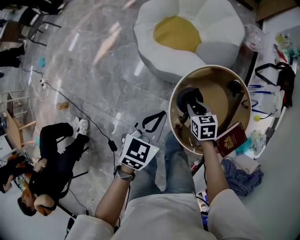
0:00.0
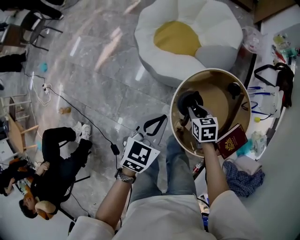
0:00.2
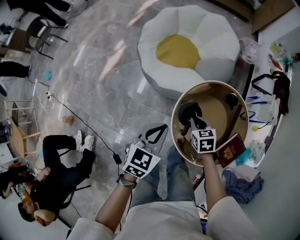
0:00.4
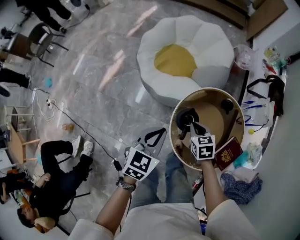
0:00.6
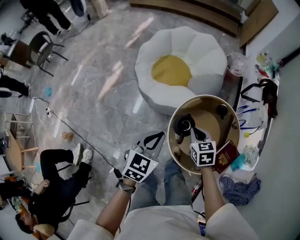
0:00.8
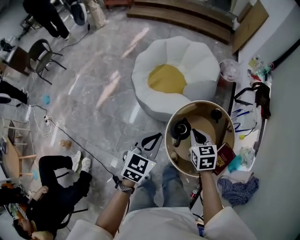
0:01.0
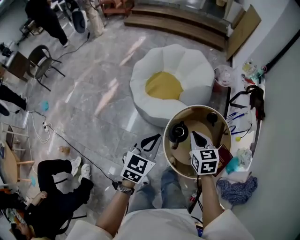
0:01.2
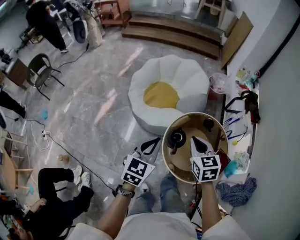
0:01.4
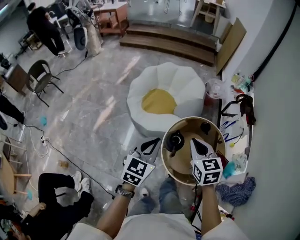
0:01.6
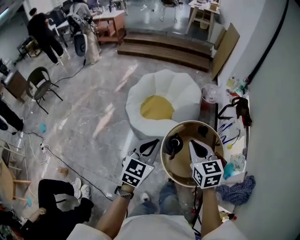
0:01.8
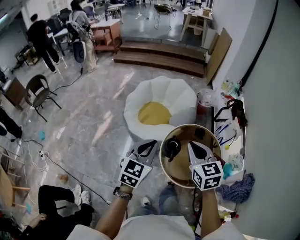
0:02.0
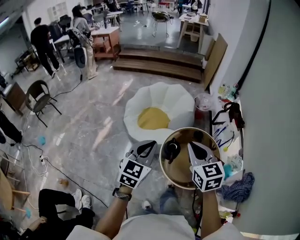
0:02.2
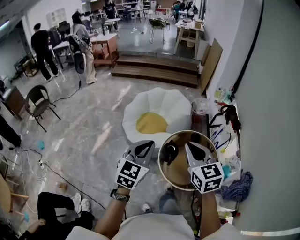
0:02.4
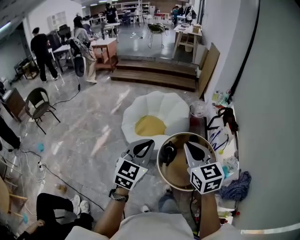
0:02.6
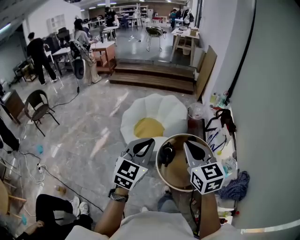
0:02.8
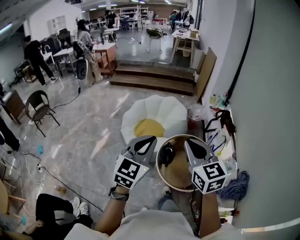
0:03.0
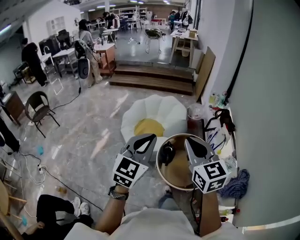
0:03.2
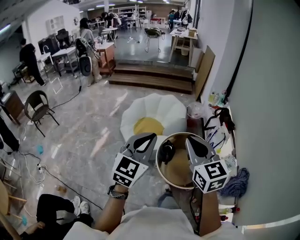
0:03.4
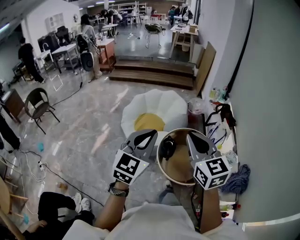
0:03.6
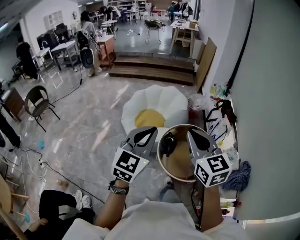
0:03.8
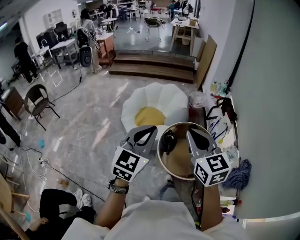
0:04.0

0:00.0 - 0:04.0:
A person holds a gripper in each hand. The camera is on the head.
0:00.0 - 0:01.4: The right gripper moves upward, some 30 cm, rotates some 30 degrees, and closes. The left gripper is displaced upward by approximately 20 cm.
0:01.4 - 0:02.6: The grippers both shift upward and backward by some 25 cm. The right gripper changes its angle by approximately 20 degrees.
0:02.6 - 0:04.0: The right gripper ends up approximately 5 cm from where it was; the left gripper changes place by approximately 5 cm.

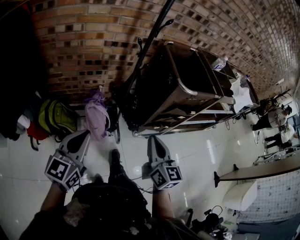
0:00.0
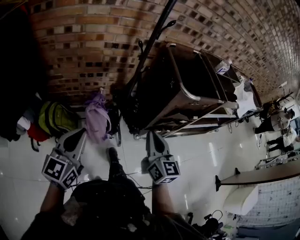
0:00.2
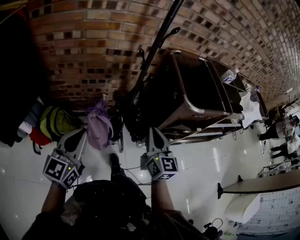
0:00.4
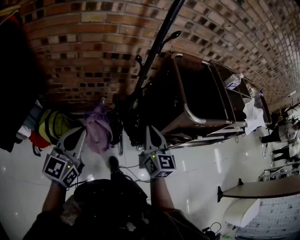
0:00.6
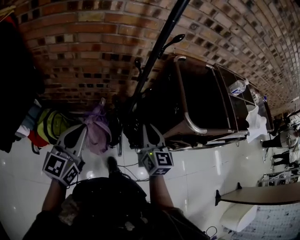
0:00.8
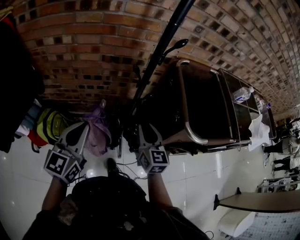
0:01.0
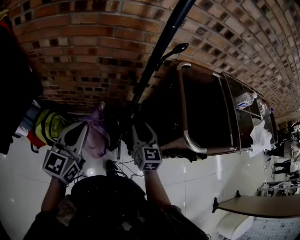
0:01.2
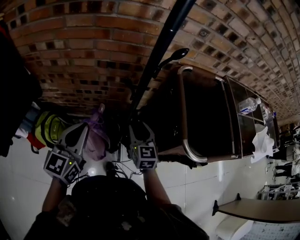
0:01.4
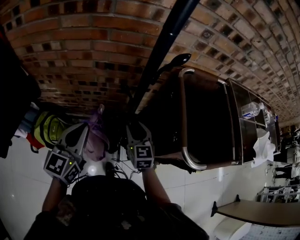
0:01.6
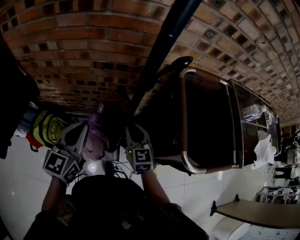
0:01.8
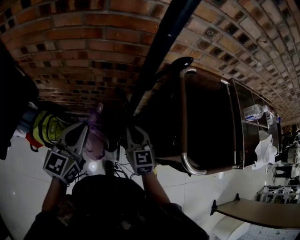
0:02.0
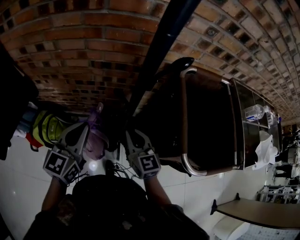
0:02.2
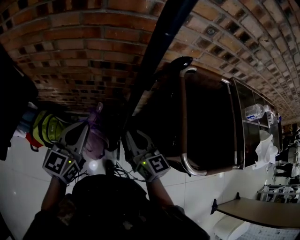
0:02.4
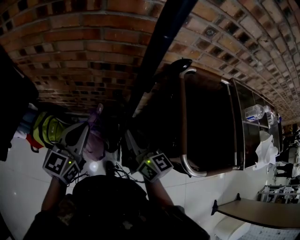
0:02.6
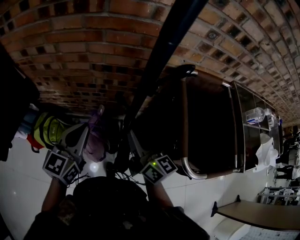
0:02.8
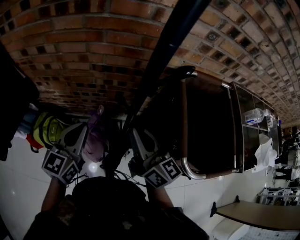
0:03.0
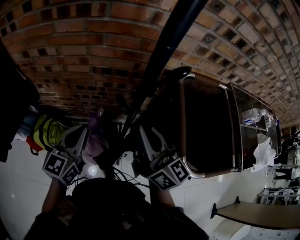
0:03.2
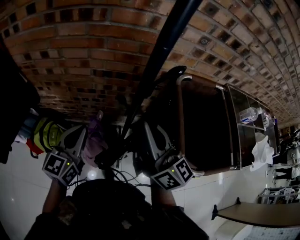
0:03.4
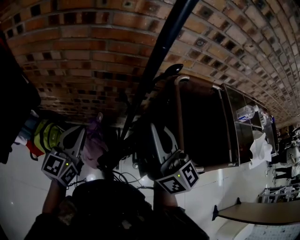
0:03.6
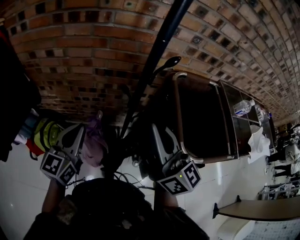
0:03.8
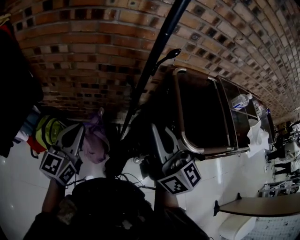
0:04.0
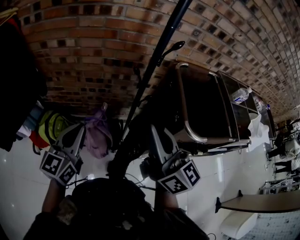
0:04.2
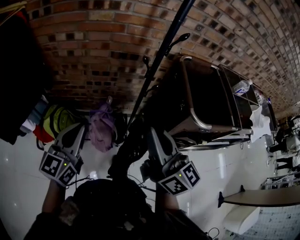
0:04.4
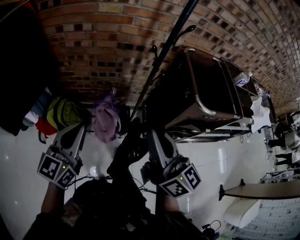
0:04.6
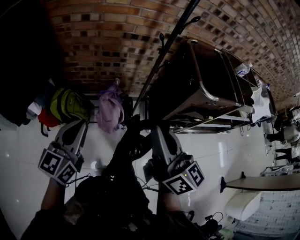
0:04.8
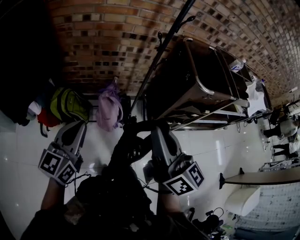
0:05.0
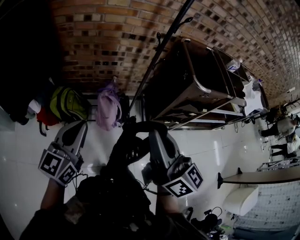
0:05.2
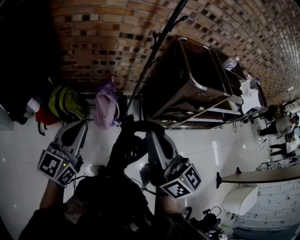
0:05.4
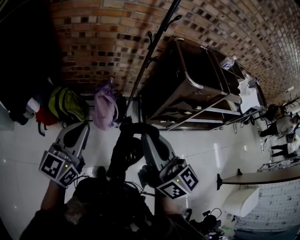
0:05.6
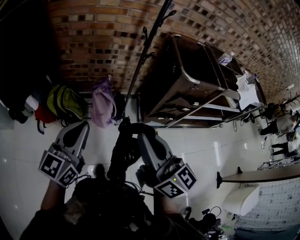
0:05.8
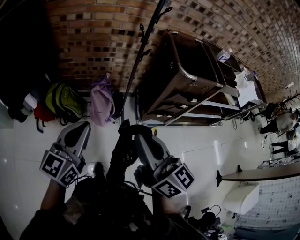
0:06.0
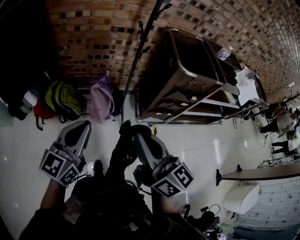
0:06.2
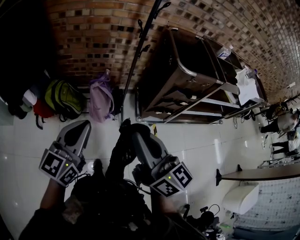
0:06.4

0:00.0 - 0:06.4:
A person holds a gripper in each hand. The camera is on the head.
0:00.0 - 0:01.6: The two grippers go roughly 40 cm forward. The right gripper changes its angle by roughly 30 degrees, and opens.
0:01.6 - 0:03.2: The right gripper heads upward, covering about 20 cm, swivels about 40 degrees, and closes.
0:03.2 - 0:04.8: The right gripper shifts roughly 35 cm backward; the left gripper goes about 35 cm backward and to the left.
0:04.8 - 0:06.4: The left gripper shifts approximately 20 cm backward and to the right. Meanwhile the right gripper heads backward, covering roughly 15 cm.

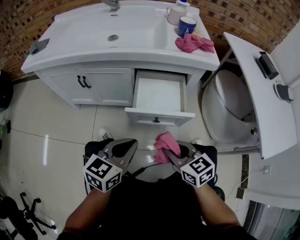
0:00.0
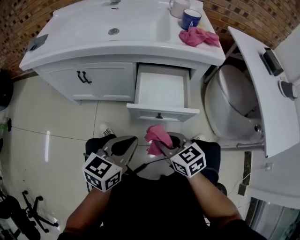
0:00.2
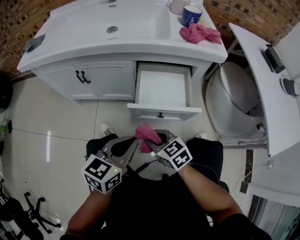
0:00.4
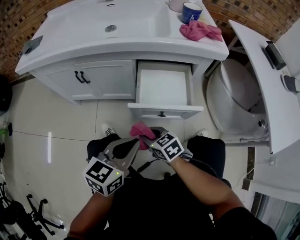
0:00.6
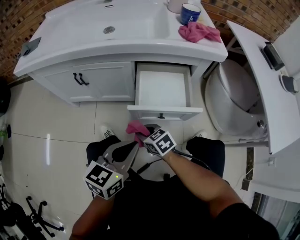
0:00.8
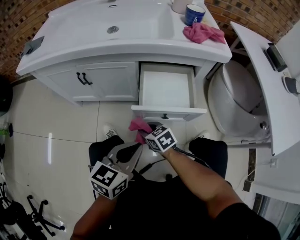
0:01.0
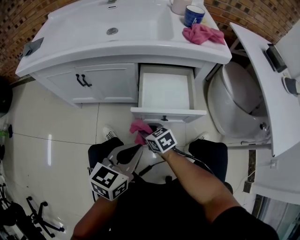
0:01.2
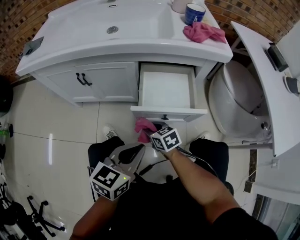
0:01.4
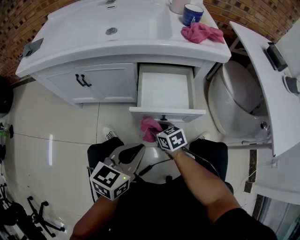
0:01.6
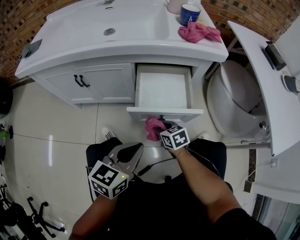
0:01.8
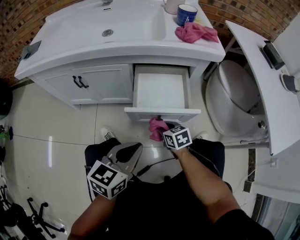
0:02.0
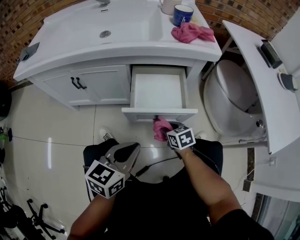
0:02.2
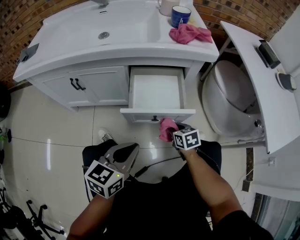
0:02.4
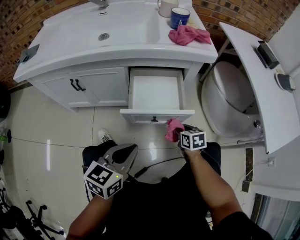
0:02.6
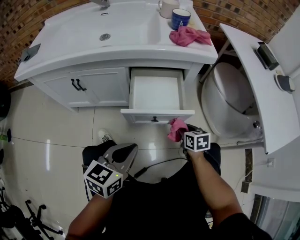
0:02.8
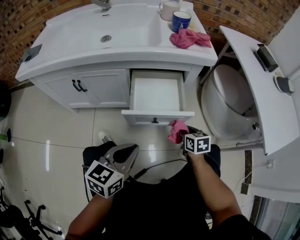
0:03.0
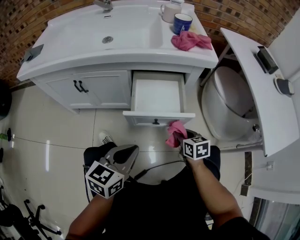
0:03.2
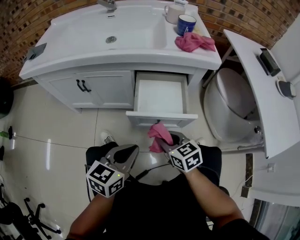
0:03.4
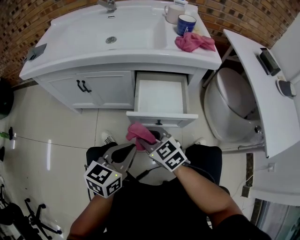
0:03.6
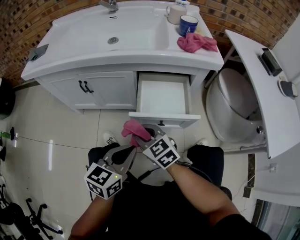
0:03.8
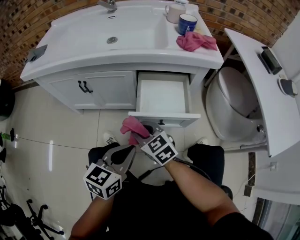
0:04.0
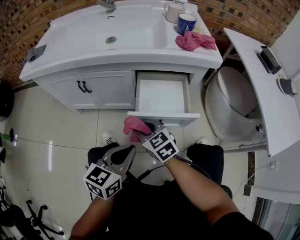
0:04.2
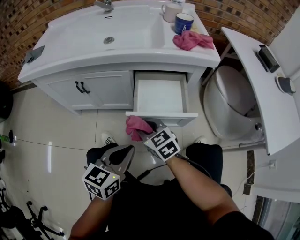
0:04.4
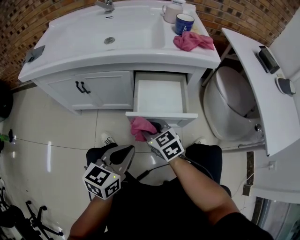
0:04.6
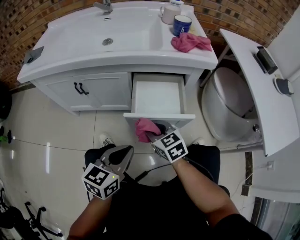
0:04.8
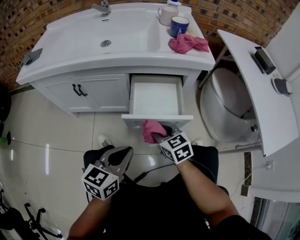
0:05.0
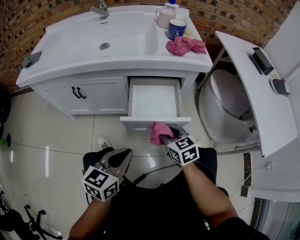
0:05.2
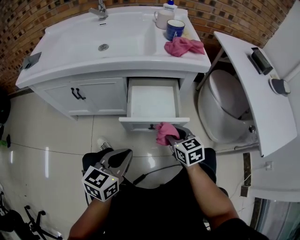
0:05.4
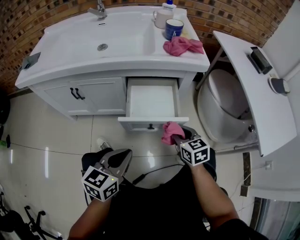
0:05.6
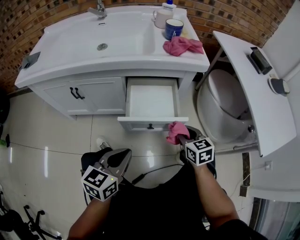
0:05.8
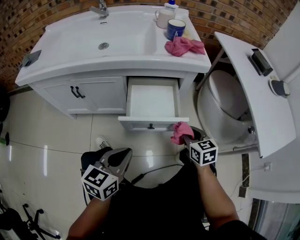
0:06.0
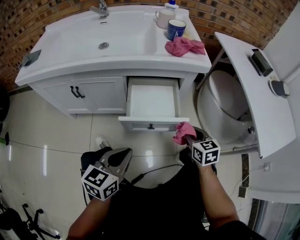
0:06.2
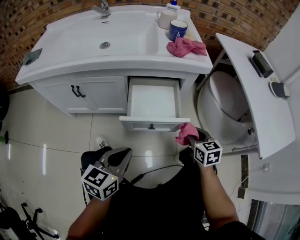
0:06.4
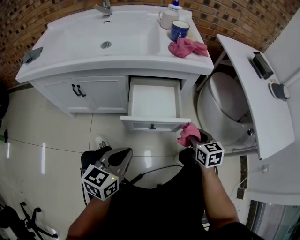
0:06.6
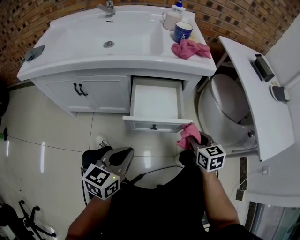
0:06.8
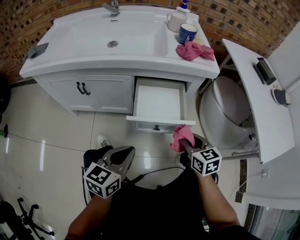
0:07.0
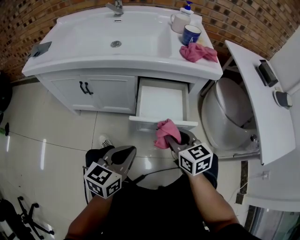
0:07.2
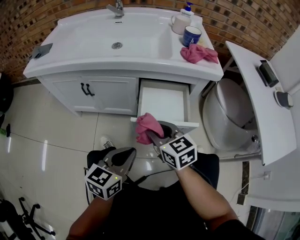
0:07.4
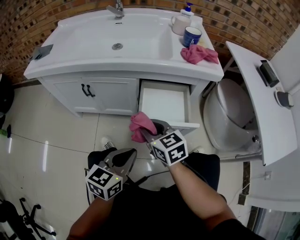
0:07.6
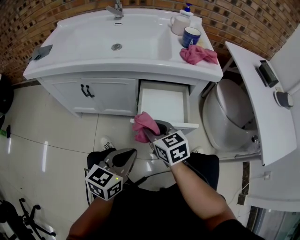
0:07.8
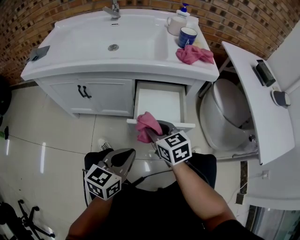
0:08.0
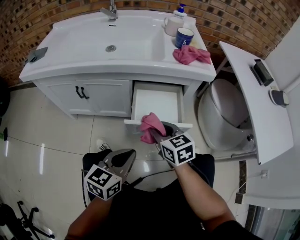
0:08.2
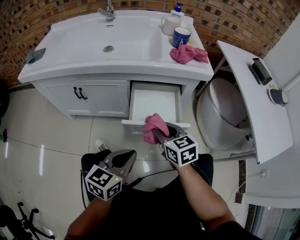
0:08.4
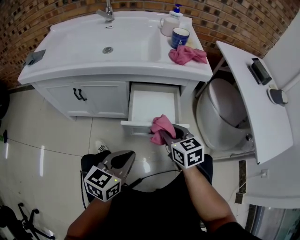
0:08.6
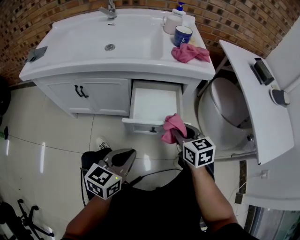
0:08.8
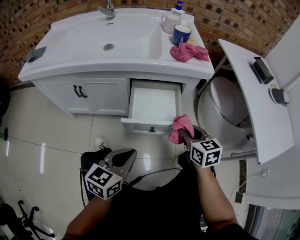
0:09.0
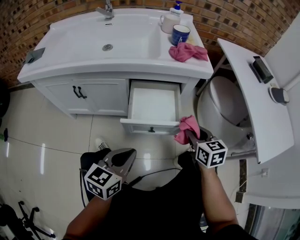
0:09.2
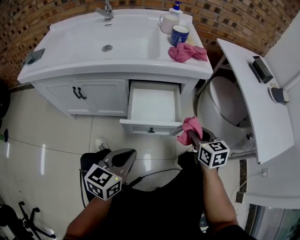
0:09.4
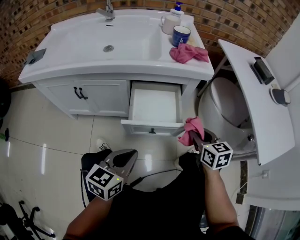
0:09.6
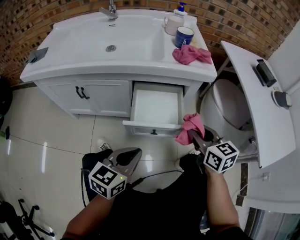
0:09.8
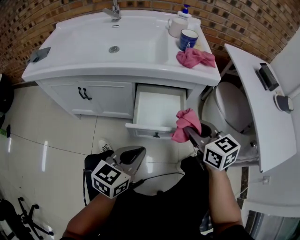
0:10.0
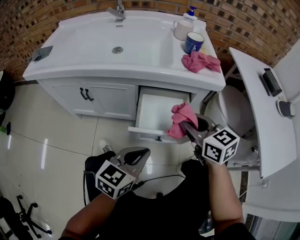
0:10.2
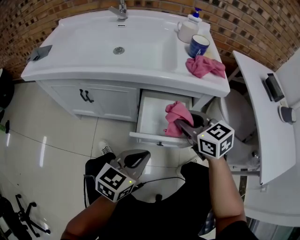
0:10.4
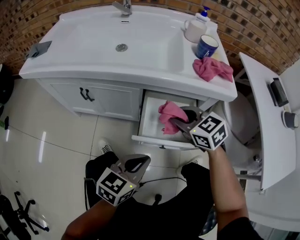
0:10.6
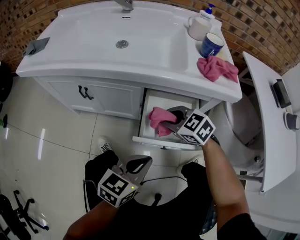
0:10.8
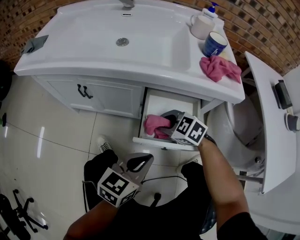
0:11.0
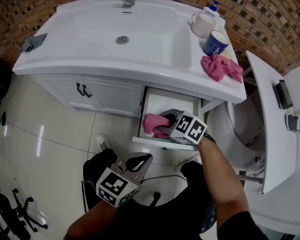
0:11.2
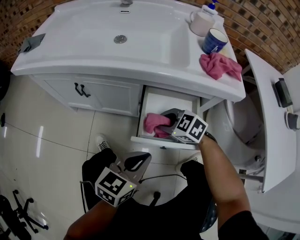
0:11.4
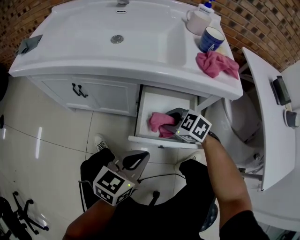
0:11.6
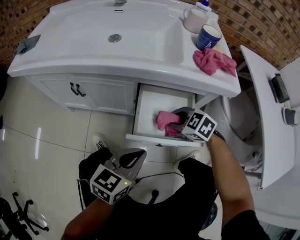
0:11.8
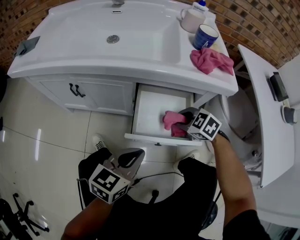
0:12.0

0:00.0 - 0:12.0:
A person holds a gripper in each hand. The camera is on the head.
0:00.0 - 0:01.6: The right gripper goes roughly 20 cm downward and forward.
0:01.6 - 0:03.0: The right gripper heads to the right, covering about 20 cm, and changes its angle by about 20 degrees.
0:03.0 - 0:04.4: The right gripper goes about 25 cm to the left and upward, and changes its angle by some 40 degrees.
0:04.4 - 0:06.0: The right gripper goes some 25 cm to the right, and swivels about 30 degrees.
0:06.0 - 0:07.6: The right gripper travels to the left by roughly 25 cm, and swivels roughly 20 degrees.
0:07.6 - 0:09.0: The right gripper heads to the right, covering approximately 20 cm.
0:09.0 - 0:10.4: The right gripper moves to the left, upward and forward, roughly 15 cm, and rotates some 30 degrees, while the left gripper travels forward by approximately 5 cm.
0:10.4 - 0:12.0: The right gripper is displaced downward by roughly 15 cm, and rotates roughly 40 degrees.

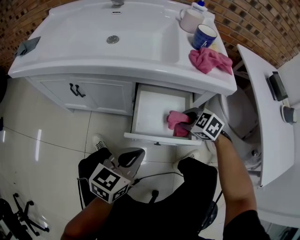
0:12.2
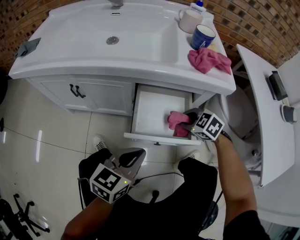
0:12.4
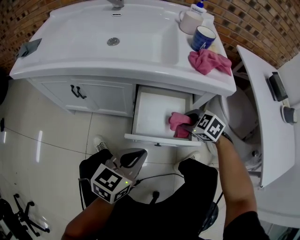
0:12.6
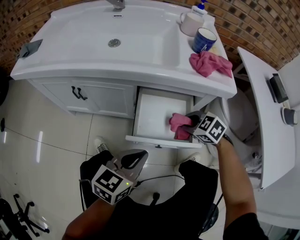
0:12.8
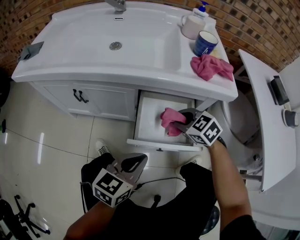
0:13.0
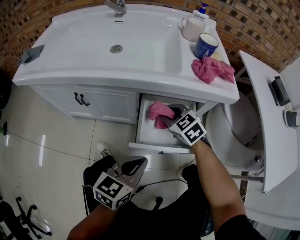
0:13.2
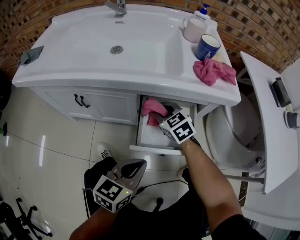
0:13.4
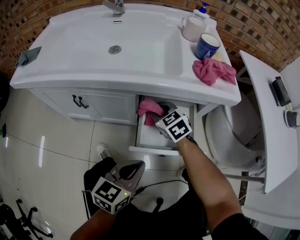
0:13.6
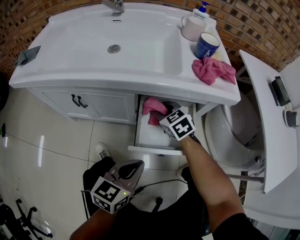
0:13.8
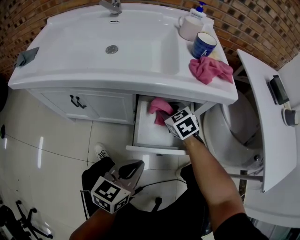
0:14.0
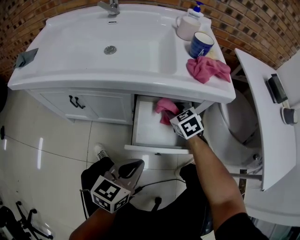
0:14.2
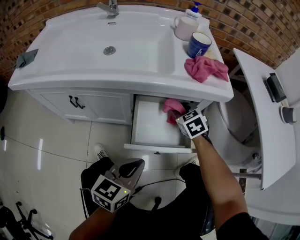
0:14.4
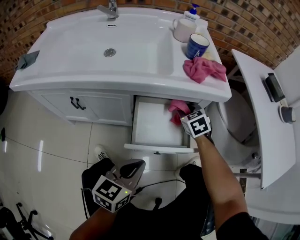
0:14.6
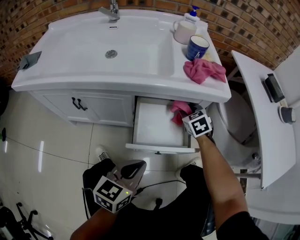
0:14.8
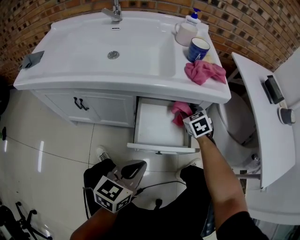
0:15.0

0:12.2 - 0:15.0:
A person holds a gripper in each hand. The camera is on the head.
0:12.2 - 0:13.6: The right gripper heads to the left and forward, covering some 15 cm, and rotates roughly 30 degrees.
0:13.6 - 0:15.0: The right gripper is displaced to the right by approximately 15 cm, and changes its angle by roughly 20 degrees.
